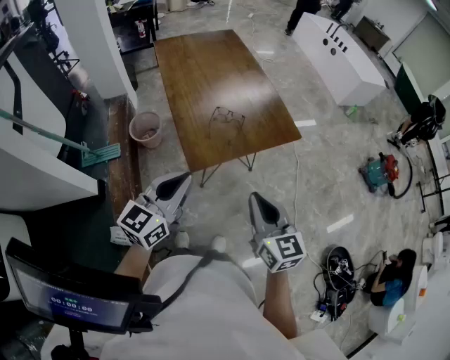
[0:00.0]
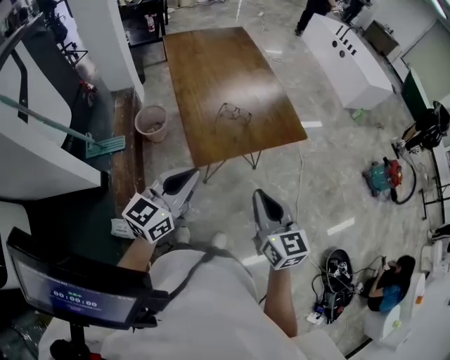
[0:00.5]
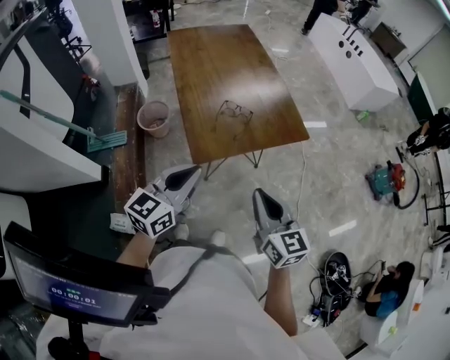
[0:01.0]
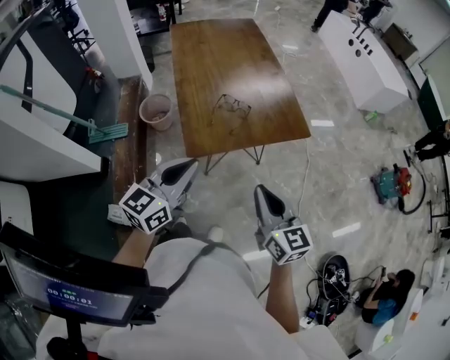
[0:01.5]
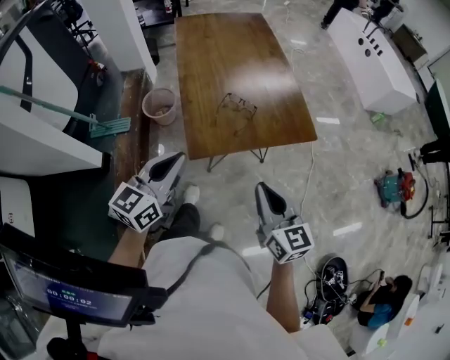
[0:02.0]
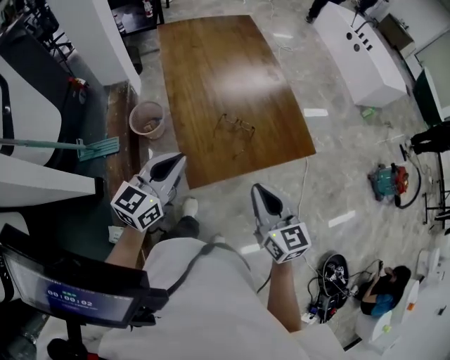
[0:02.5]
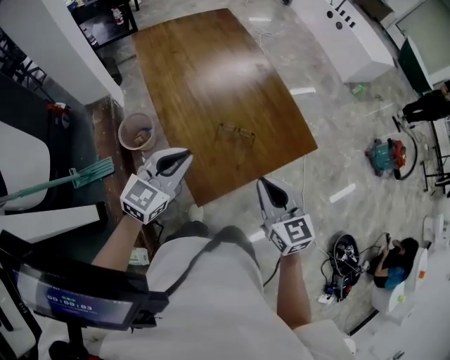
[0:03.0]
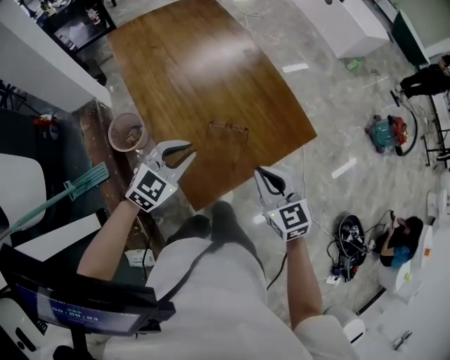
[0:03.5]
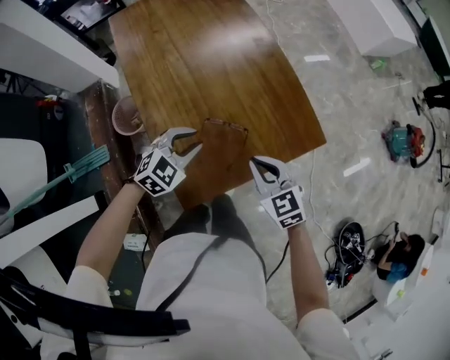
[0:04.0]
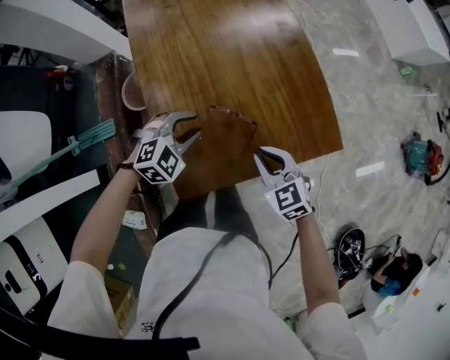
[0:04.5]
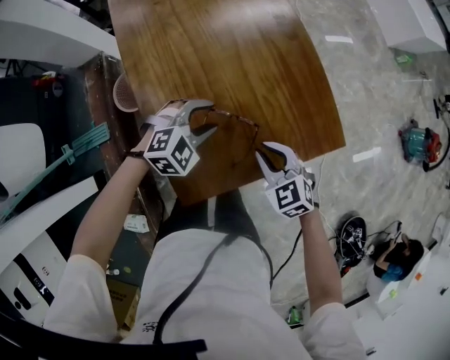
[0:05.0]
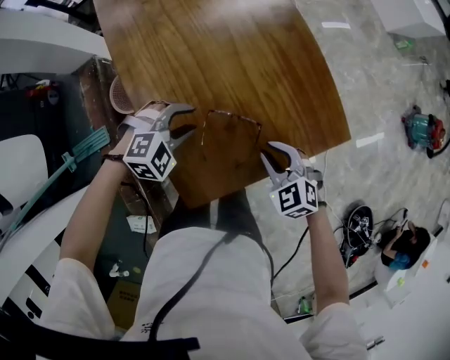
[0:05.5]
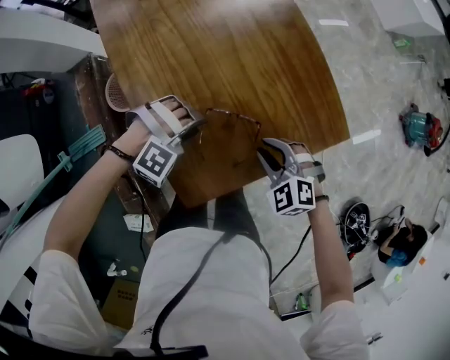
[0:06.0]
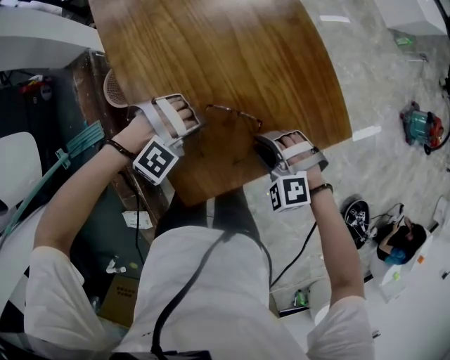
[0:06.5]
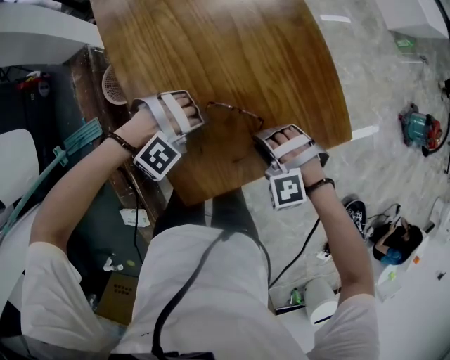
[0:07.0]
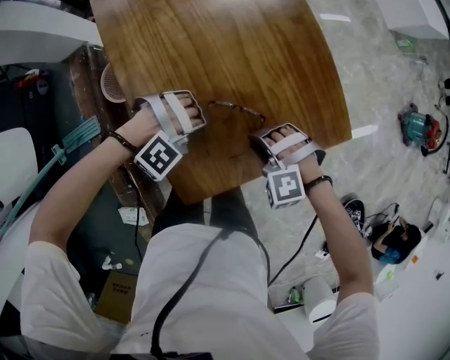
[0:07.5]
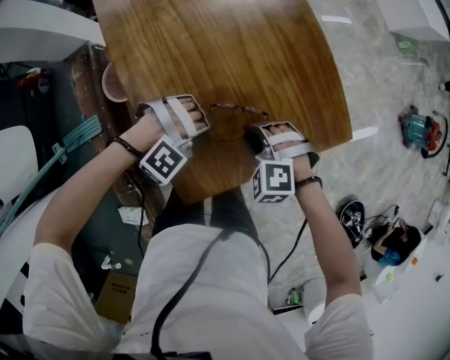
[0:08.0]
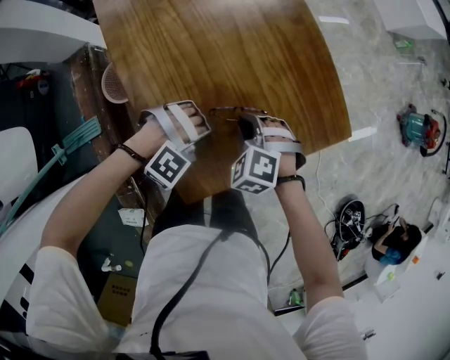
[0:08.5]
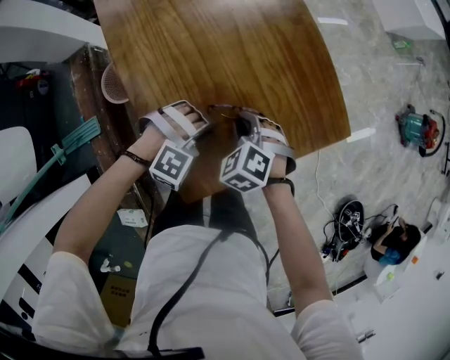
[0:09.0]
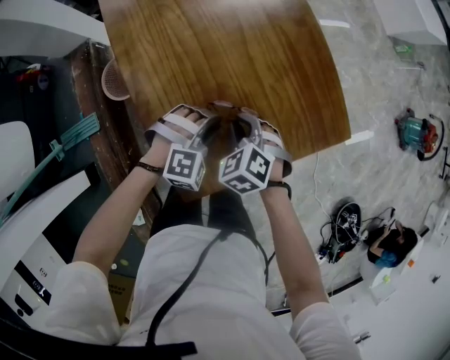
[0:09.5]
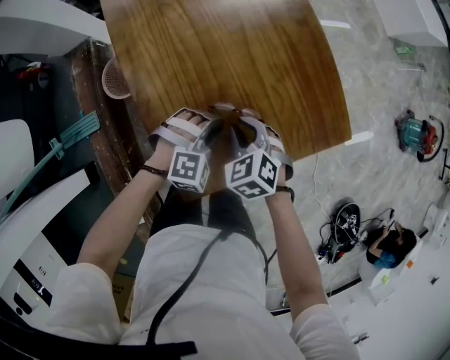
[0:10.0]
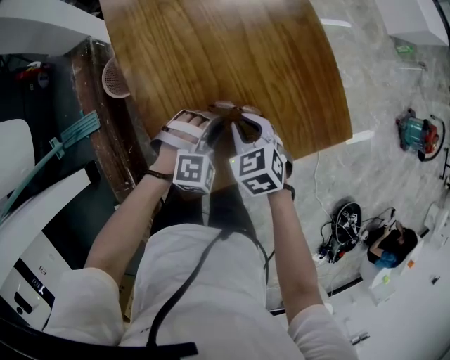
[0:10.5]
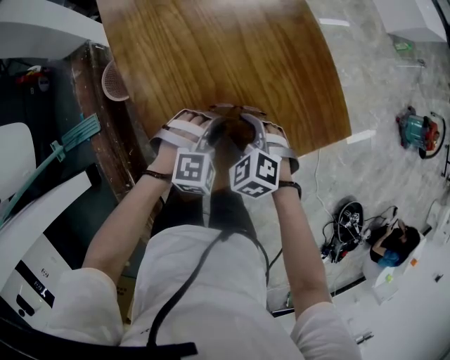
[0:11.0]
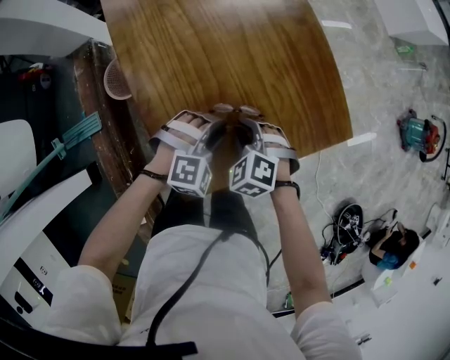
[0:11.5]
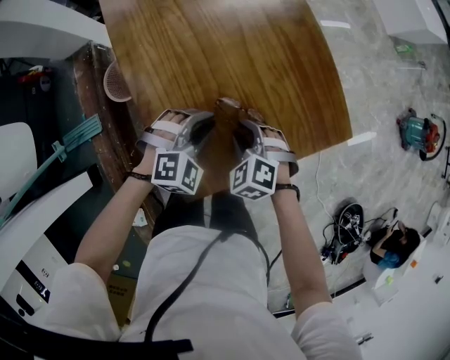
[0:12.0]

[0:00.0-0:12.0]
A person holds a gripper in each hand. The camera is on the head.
0:00.0 to 0:02.0: The two grippers go some 5 cm forward.
0:02.0 to 0:04.0: The grippers both shift forward and downward by approximately 35 cm. The right gripper turns by approximately 30 degrees. The left gripper tilts its fingers approximately 30 degrees downward, and opens up.
0:04.0 to 0:06.0: Both grippers move downward, approximately 10 cm. The left gripper twists some 60 degrees clockwise, seen from behind. Meanwhile the right gripper swivels approximately 40 degrees, and opens.
0:06.0 to 0:08.0: The right gripper goes some 5 cm to the left, and turns by approximately 20 degrees; the left gripper closes its fingers.
0:08.0 to 0:10.0: The left gripper swivels roughly 40 degrees; the right gripper changes its angle by about 40 degrees.
0:10.0 to 0:12.0: There are only small adjustments of the grippers.

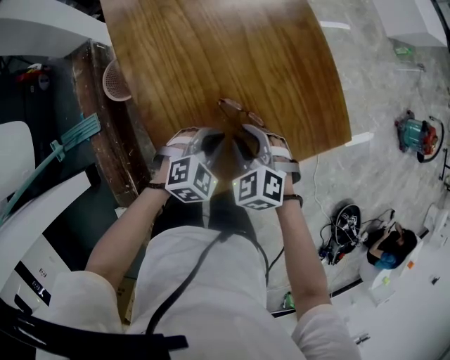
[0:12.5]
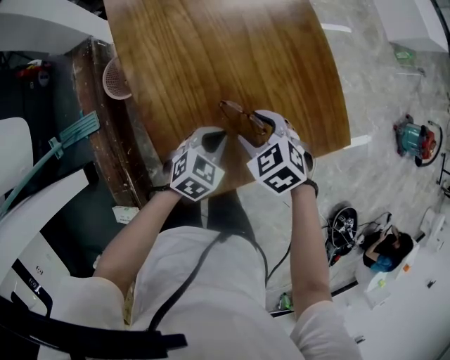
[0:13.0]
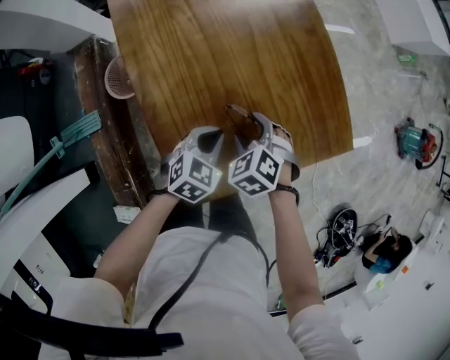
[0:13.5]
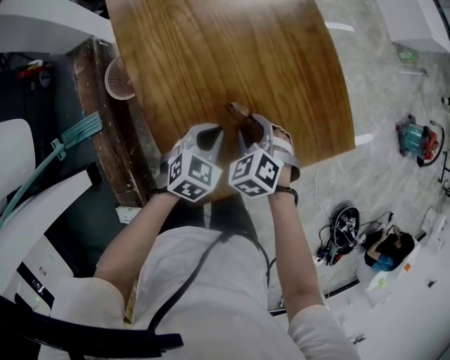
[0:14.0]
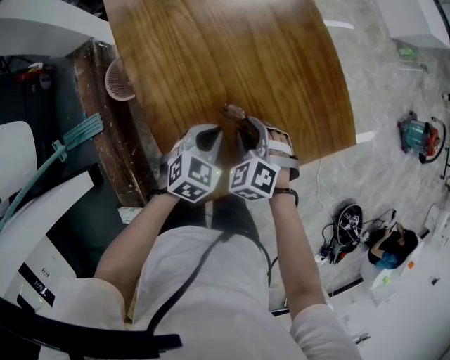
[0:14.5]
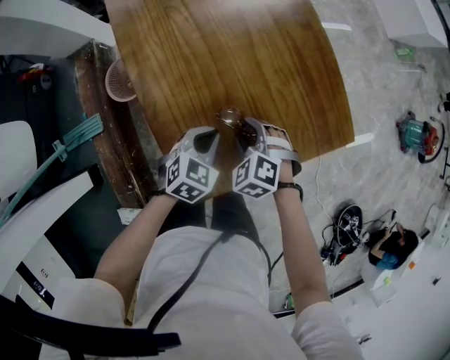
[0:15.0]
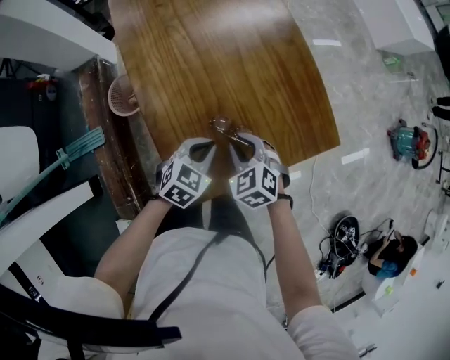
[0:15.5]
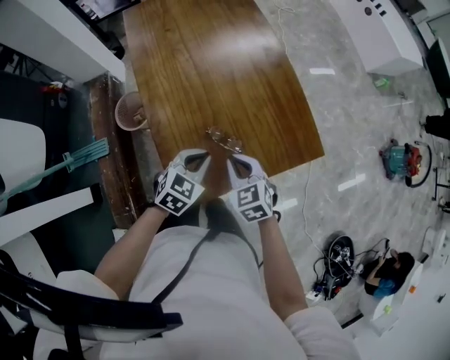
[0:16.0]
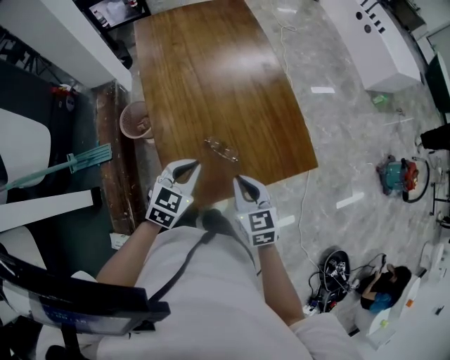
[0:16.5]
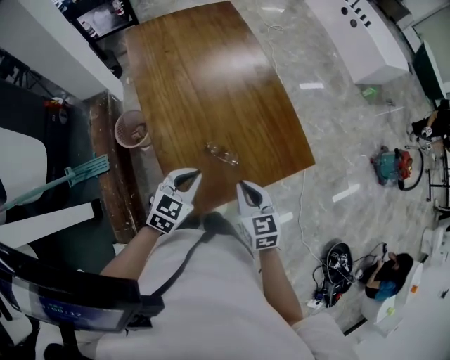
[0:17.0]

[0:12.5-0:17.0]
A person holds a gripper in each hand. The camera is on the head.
0:12.5 to 0:14.5: The left gripper rotates some 20 degrees, while the right gripper opens and closes again.
0:14.5 to 0:17.0: The right gripper shifts about 20 cm upward, backward and to the right, rolls clockwise, seen from behind, by some 40 degrees, and closes its fingers; the left gripper moves upward and backward, approximately 20 cm.

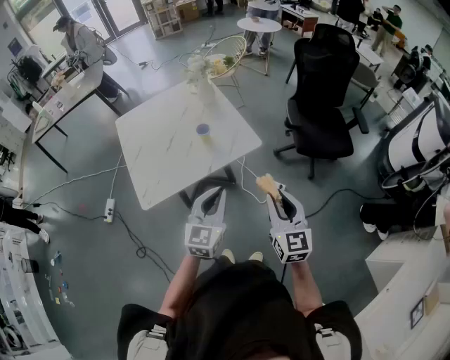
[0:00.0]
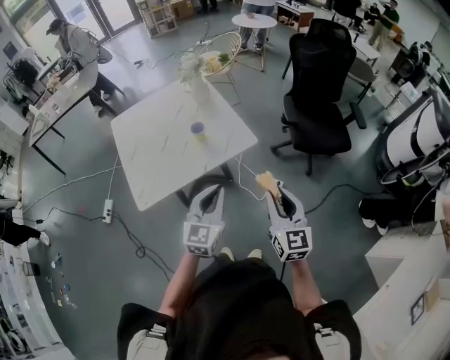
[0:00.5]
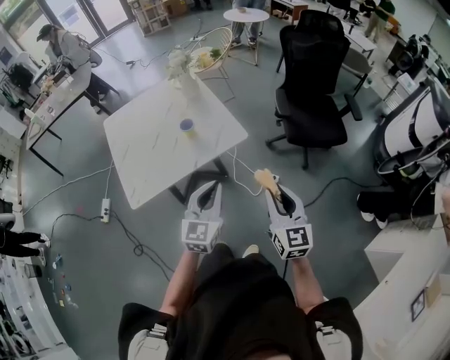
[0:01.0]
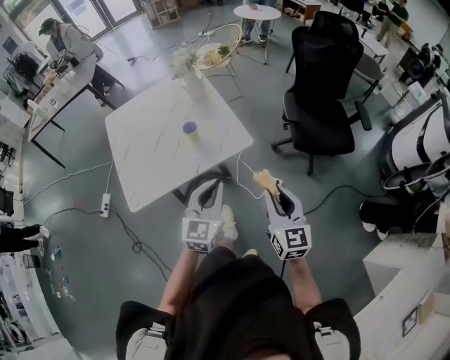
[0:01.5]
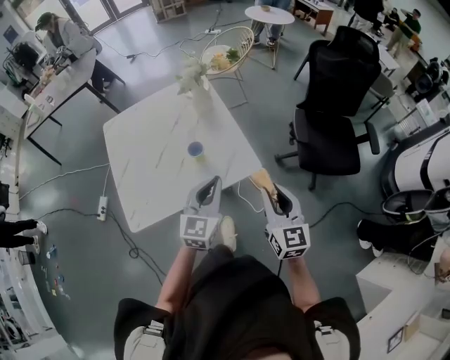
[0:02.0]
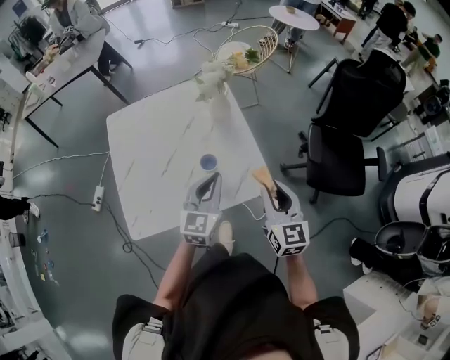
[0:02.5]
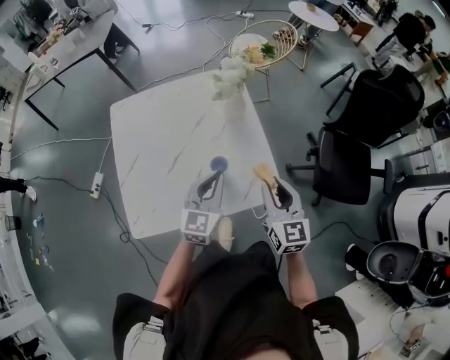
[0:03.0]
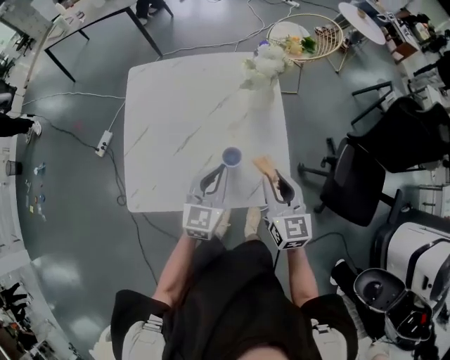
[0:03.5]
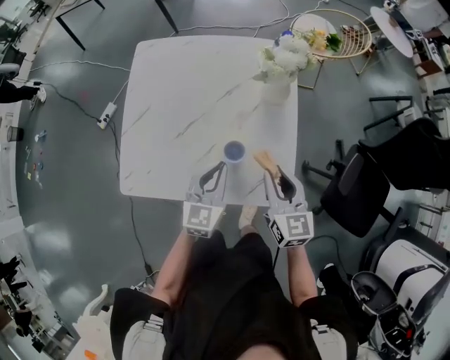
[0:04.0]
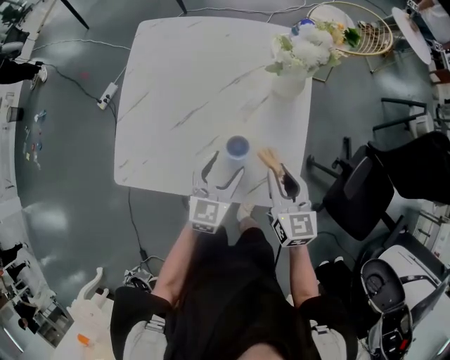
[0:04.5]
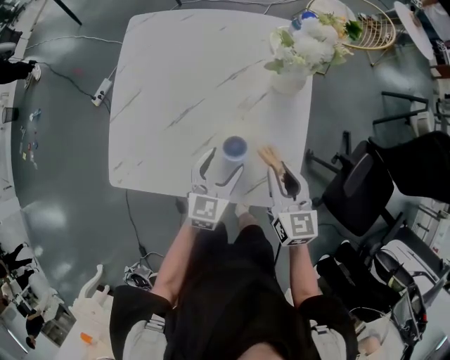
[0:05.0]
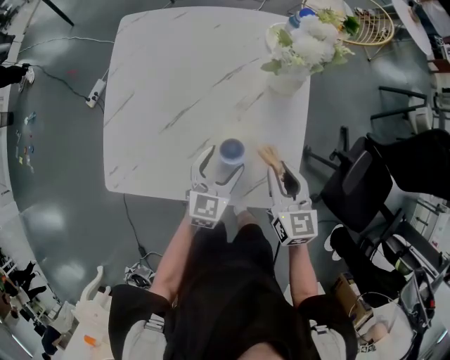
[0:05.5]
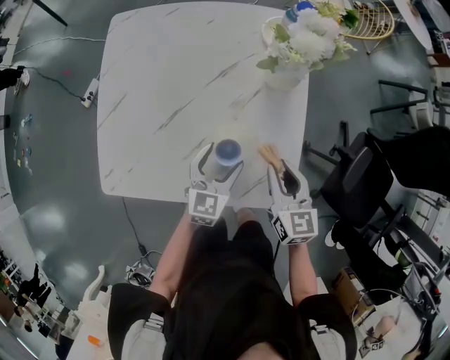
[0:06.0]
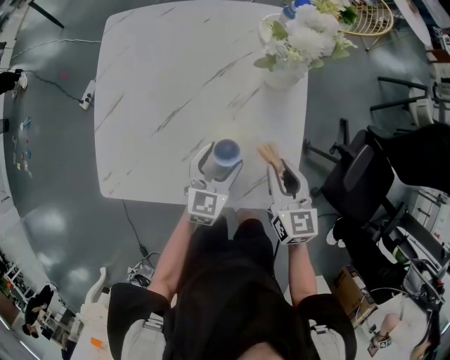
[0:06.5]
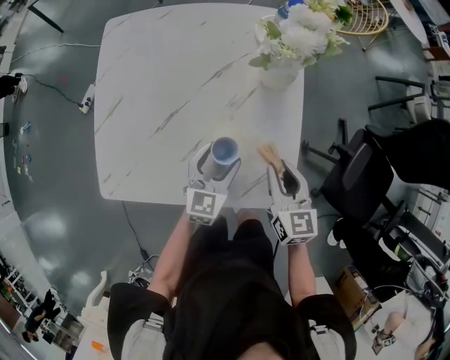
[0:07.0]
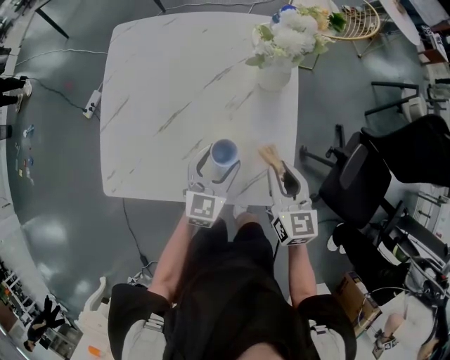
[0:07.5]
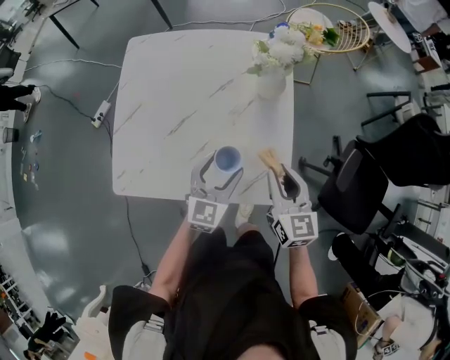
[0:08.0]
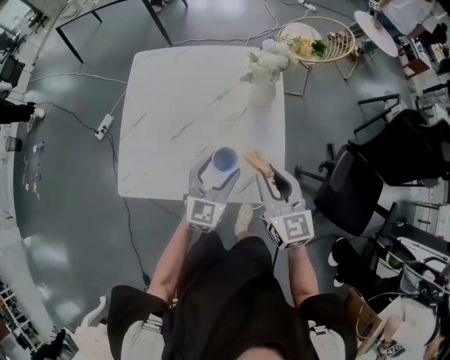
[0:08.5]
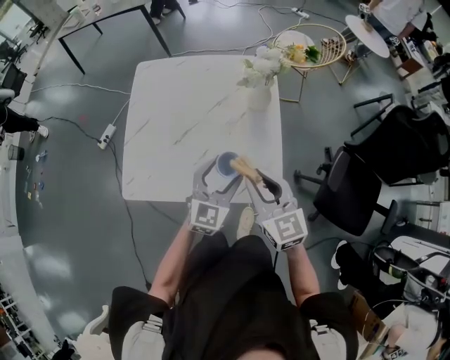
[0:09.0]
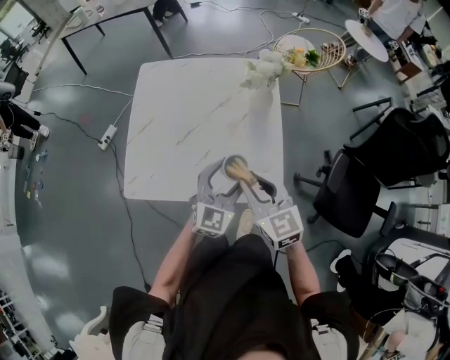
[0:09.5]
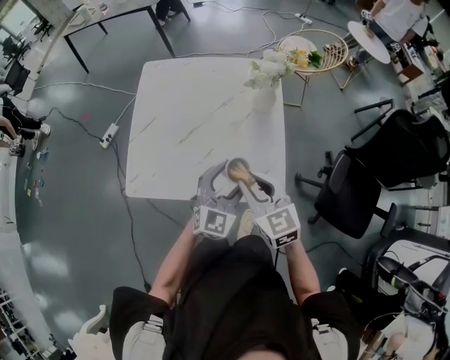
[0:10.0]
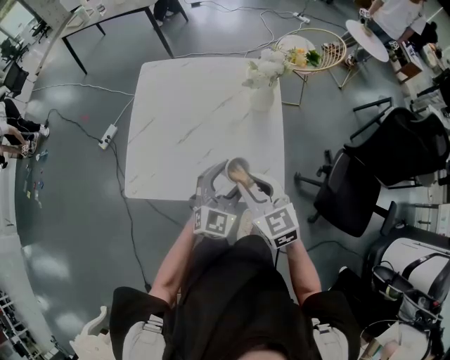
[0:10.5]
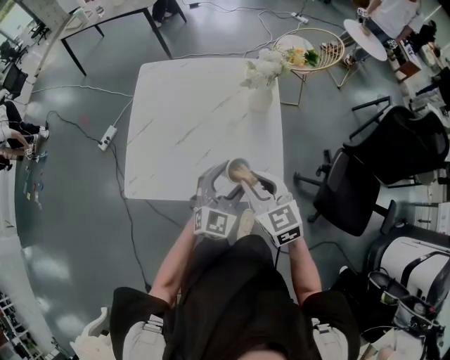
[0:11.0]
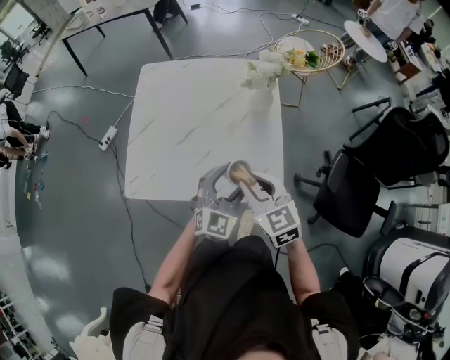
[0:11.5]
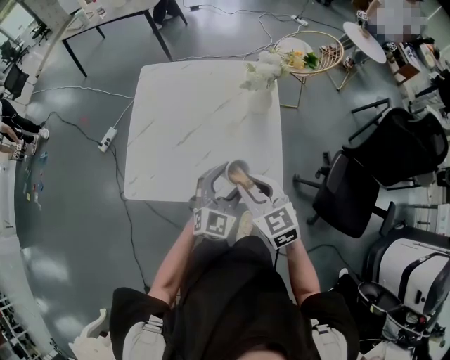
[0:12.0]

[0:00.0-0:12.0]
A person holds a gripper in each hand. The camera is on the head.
0:00.0 to 0:02.0: The grippers both shift forward by some 20 cm.
0:02.0 to 0:04.0: The right gripper moves approximately 30 cm, and changes its angle by about 30 degrees, while the left gripper shifts by about 25 cm, and turns by some 30 degrees.
0:04.0 to 0:06.0: Both grippers travel together downward, roughly 10 cm. The left gripper opens up.
0:06.0 to 0:08.0: The two grippers go some 10 cm upward.
0:08.0 to 0:10.0: The left gripper moves upward and backward, some 10 cm. The right gripper goes some 15 cm to the left, upward and backward.
0:10.0 to 0:12.0: There are only small adjustments of the grippers.
